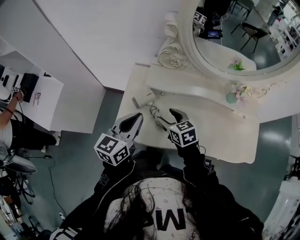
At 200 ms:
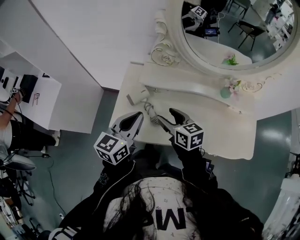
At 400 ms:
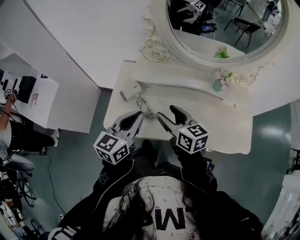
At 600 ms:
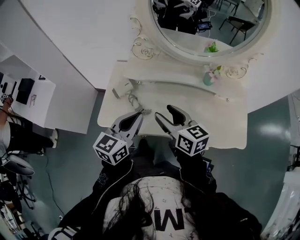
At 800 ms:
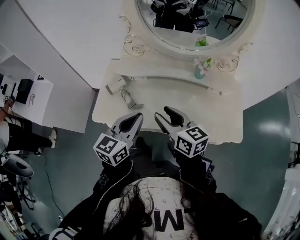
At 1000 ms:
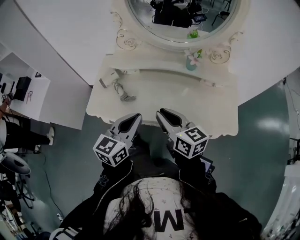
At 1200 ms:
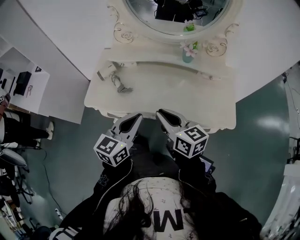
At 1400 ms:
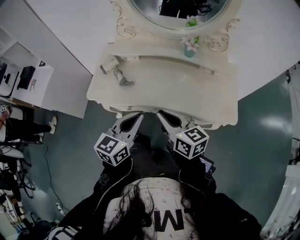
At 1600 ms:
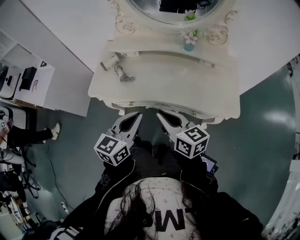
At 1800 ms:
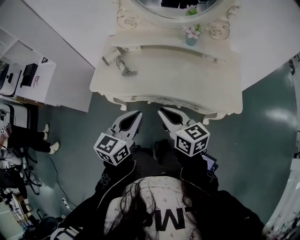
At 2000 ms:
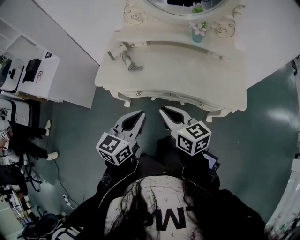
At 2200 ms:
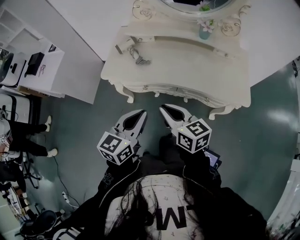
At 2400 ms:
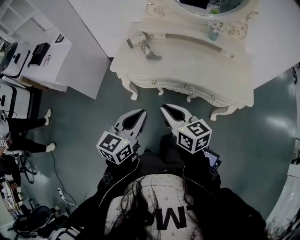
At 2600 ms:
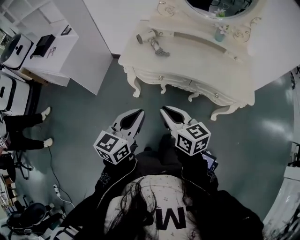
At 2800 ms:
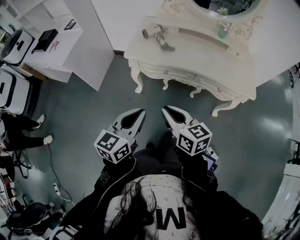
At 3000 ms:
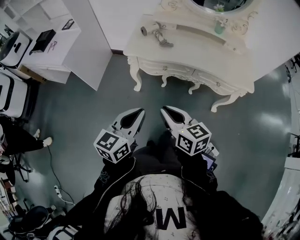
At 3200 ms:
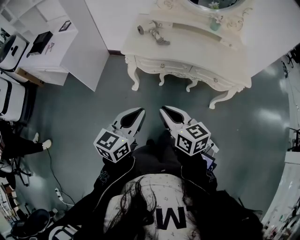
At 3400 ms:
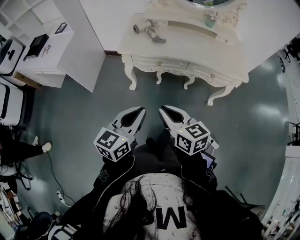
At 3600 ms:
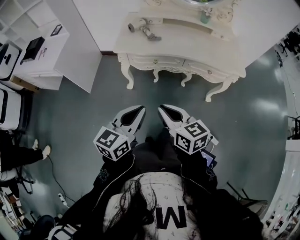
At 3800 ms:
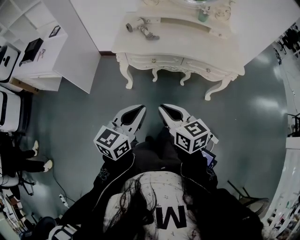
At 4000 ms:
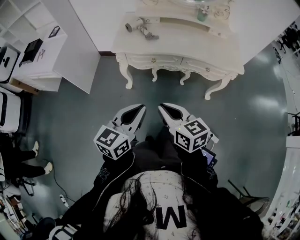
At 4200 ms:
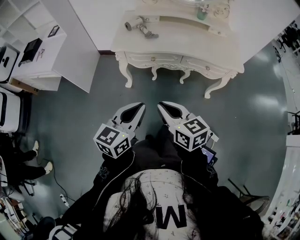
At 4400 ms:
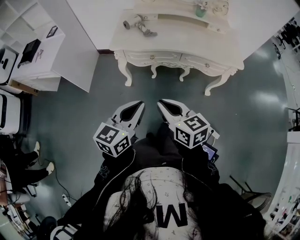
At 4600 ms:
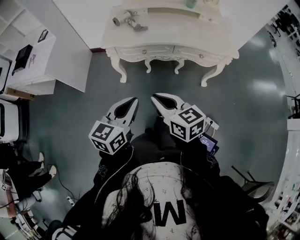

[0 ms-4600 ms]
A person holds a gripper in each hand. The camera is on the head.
0 ms to 1600 ms: The left gripper is displaced backward and to the right by roughly 35 cm. The right gripper moves backward, to the right and upward, about 35 cm, turns by some 30 degrees, and closes up.
1600 ms to 3000 ms: Both grippers move to the left and backward, roughly 30 cm.
3000 ms to 4600 ms: There are only small adjustments of the grippers.

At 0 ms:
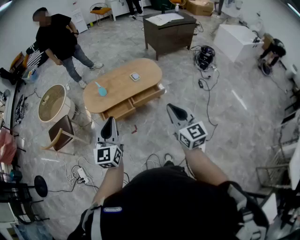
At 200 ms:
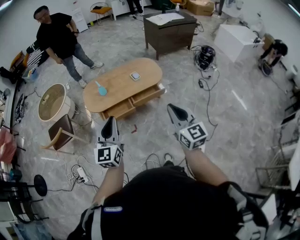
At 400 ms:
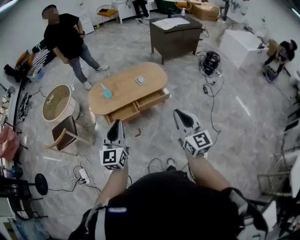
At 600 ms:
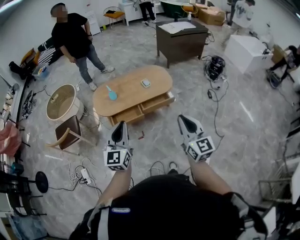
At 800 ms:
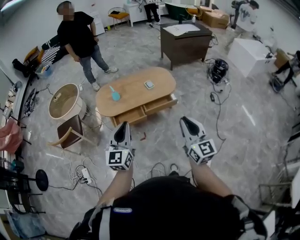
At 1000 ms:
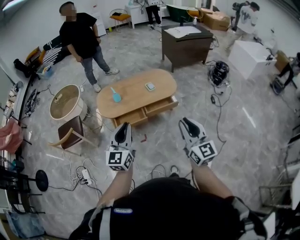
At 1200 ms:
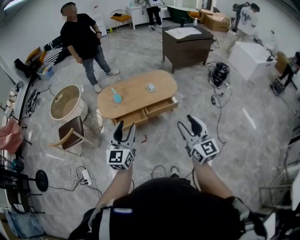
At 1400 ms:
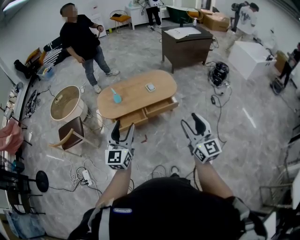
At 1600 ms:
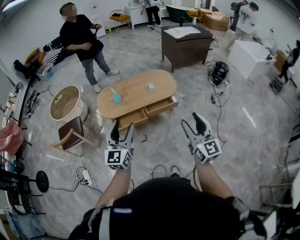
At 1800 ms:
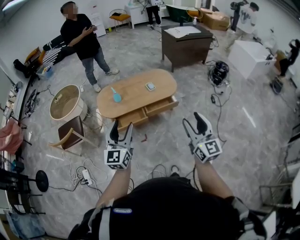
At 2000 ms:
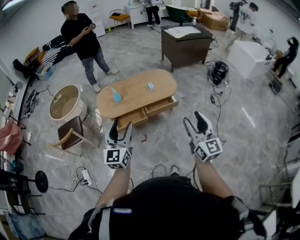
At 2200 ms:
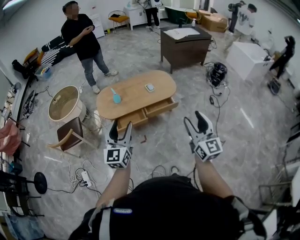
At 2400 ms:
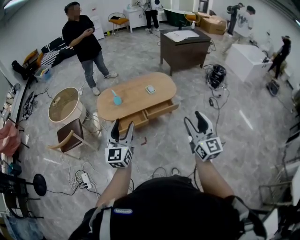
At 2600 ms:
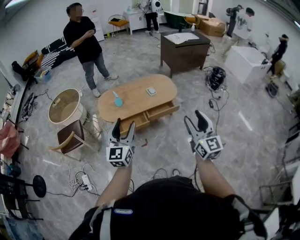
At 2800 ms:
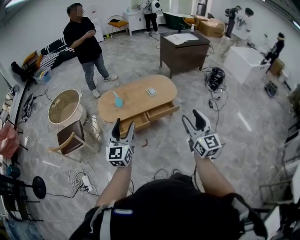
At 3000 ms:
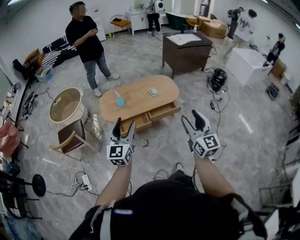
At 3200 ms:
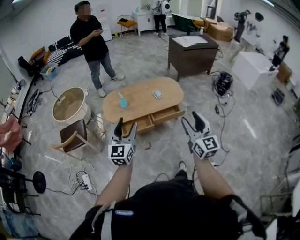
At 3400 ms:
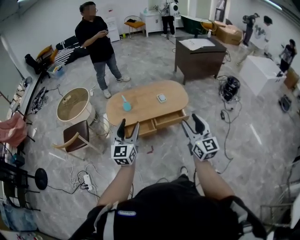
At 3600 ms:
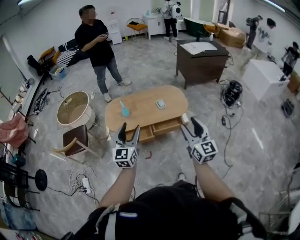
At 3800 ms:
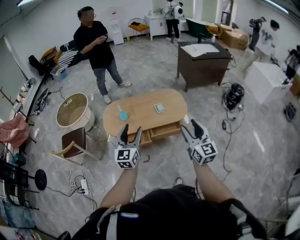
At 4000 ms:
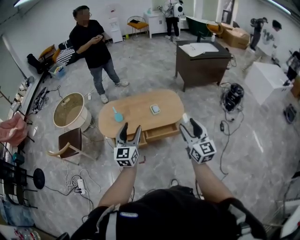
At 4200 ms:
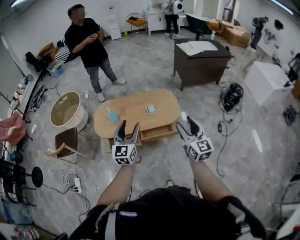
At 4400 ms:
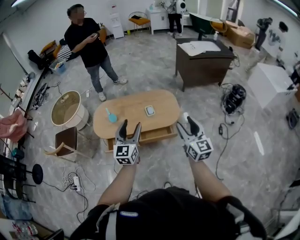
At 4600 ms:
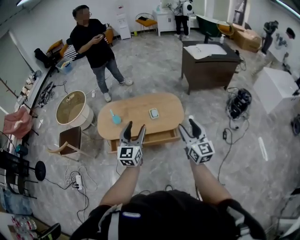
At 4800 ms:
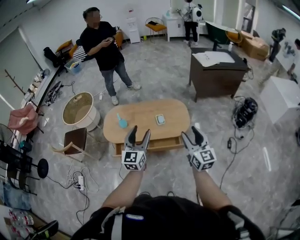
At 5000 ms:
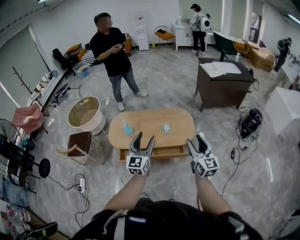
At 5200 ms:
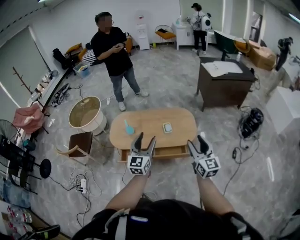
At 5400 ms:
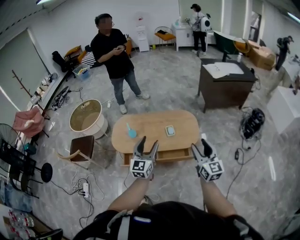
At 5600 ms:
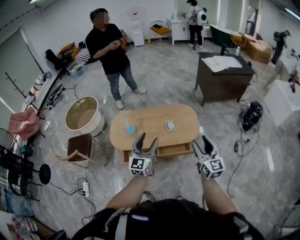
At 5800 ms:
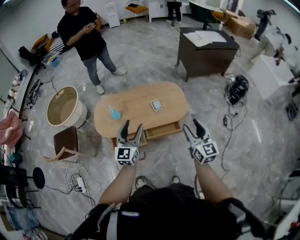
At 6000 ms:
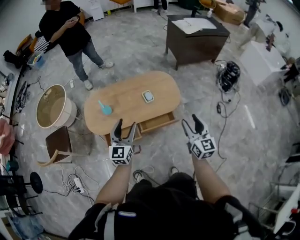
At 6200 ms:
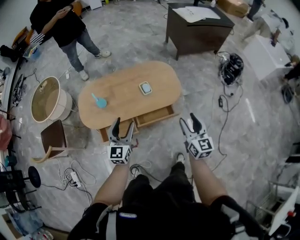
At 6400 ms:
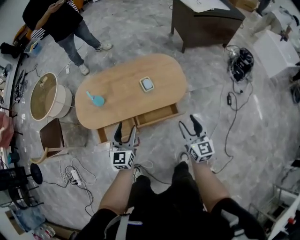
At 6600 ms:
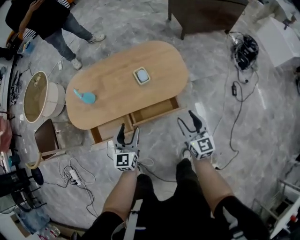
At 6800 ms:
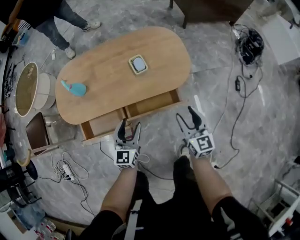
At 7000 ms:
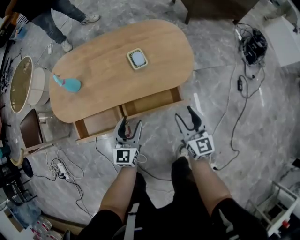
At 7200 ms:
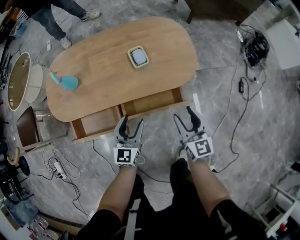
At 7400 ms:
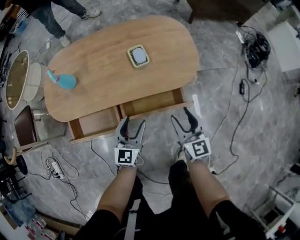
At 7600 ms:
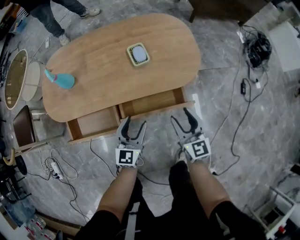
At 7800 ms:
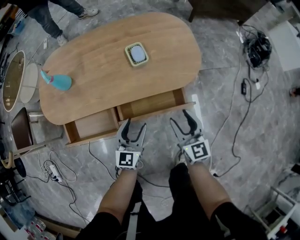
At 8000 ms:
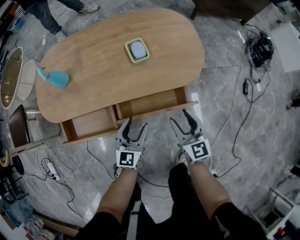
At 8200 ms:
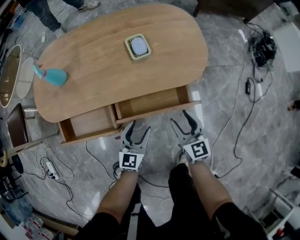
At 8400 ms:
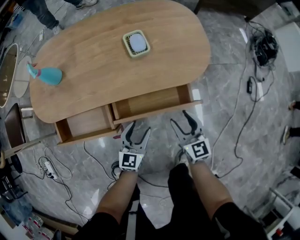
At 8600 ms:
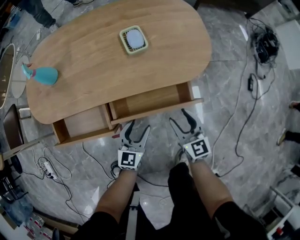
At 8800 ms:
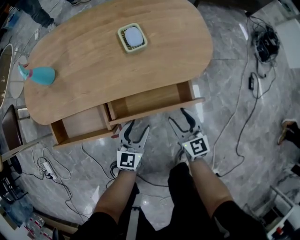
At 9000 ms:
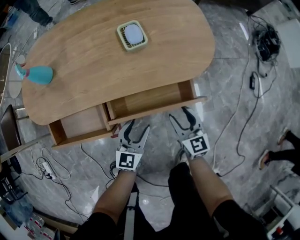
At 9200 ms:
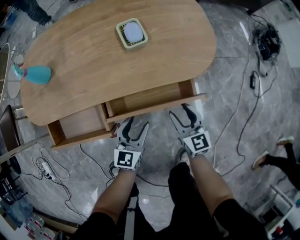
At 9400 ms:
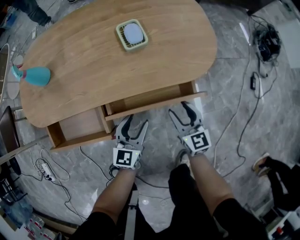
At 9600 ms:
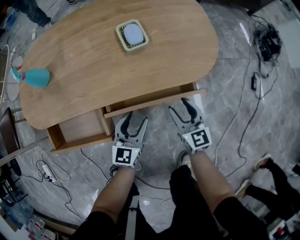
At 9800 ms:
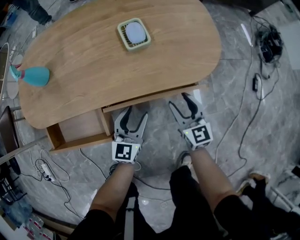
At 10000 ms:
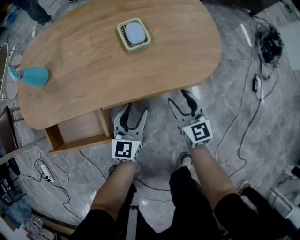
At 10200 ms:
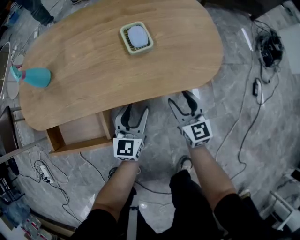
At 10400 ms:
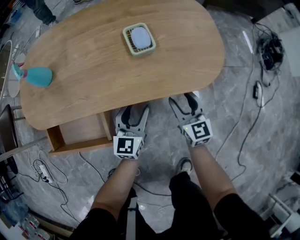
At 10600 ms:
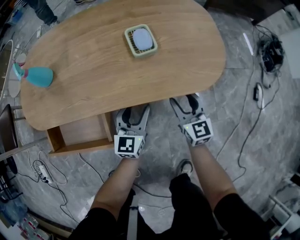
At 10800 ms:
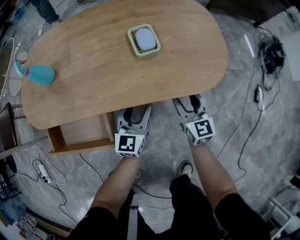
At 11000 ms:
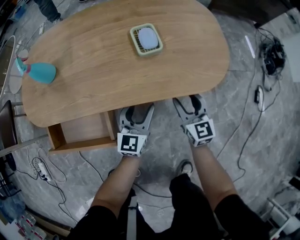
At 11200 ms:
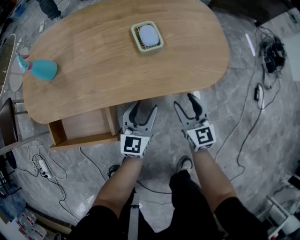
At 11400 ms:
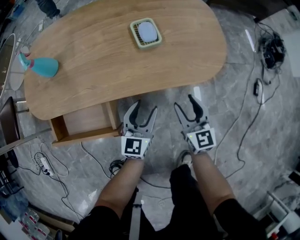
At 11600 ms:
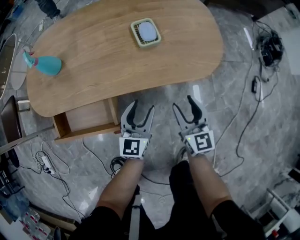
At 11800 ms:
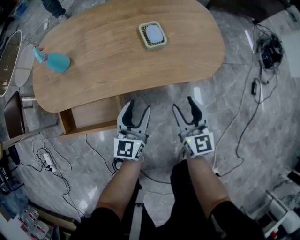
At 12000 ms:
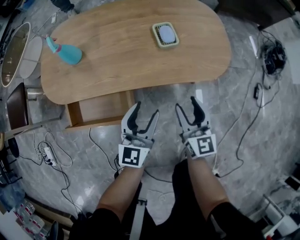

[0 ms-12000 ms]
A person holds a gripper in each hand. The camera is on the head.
0 ms to 1600 ms: The right gripper opens up. Meanwhile the left gripper opens up.
1600 ms to 3000 ms: Both grippers move to the left, approximately 5 cm.
3000 ms to 4400 ms: The right gripper shifts approximately 35 cm forward and to the right. The left gripper travels to the right and forward by roughly 35 cm.
4400 ms to 6000 ms: The right gripper moves downward, roughly 10 cm; the left gripper heads downward, to the left and forward, covering approximately 15 cm.
6000 ms to 7600 ms: Both grippers move downward, roughly 40 cm.
7600 ms to 9000 ms: Both grippers travel together downward, about 15 cm.
9000 ms to 10400 ms: The two grippers go about 10 cm forward.
10400 ms to 12000 ms: The right gripper is displaced upward, backward and to the left by approximately 15 cm, while the left gripper travels upward and backward by about 15 cm.

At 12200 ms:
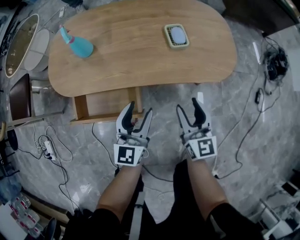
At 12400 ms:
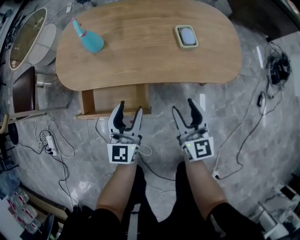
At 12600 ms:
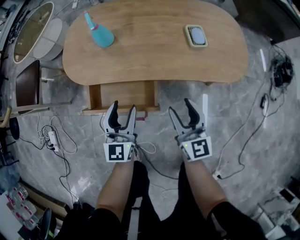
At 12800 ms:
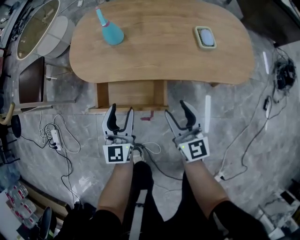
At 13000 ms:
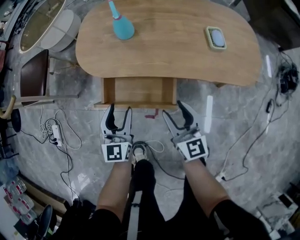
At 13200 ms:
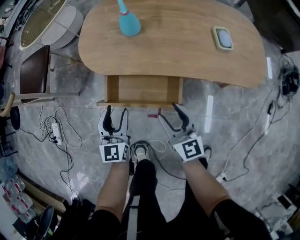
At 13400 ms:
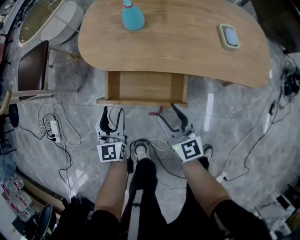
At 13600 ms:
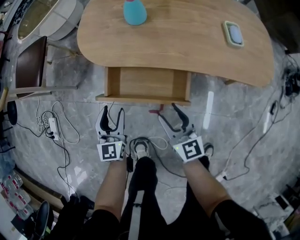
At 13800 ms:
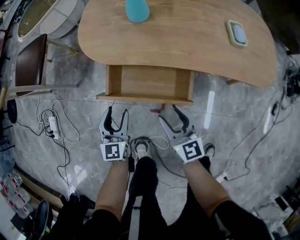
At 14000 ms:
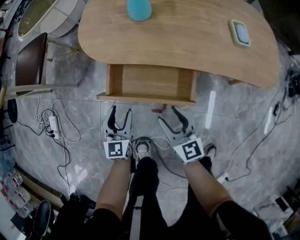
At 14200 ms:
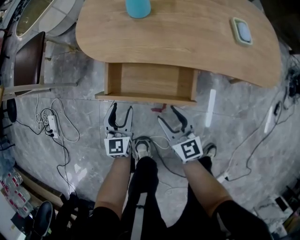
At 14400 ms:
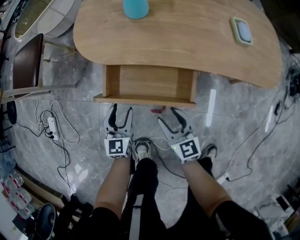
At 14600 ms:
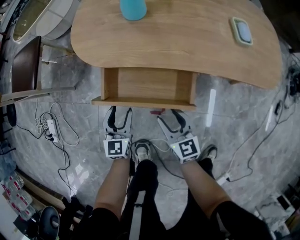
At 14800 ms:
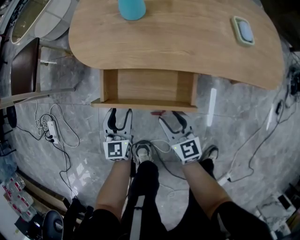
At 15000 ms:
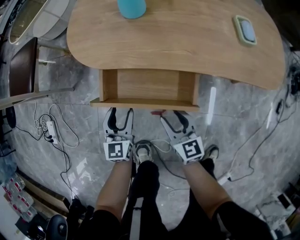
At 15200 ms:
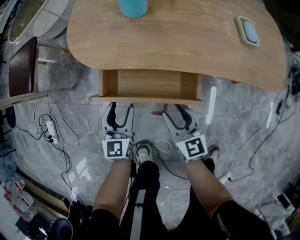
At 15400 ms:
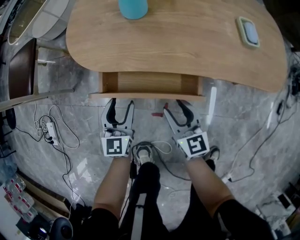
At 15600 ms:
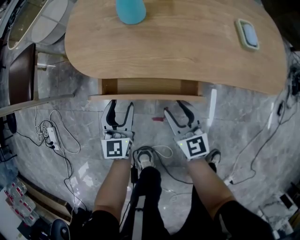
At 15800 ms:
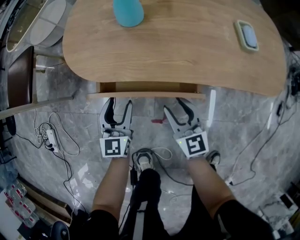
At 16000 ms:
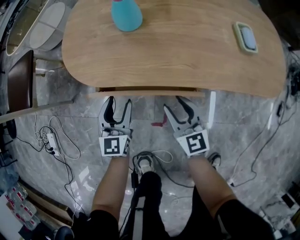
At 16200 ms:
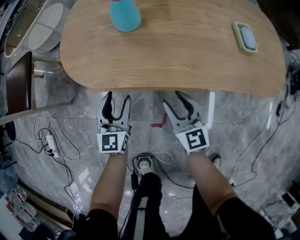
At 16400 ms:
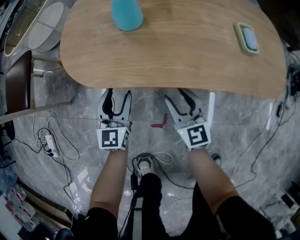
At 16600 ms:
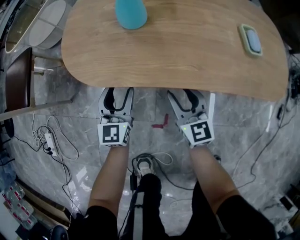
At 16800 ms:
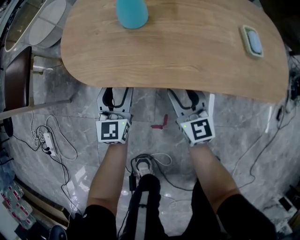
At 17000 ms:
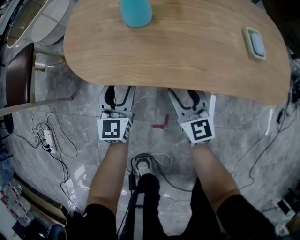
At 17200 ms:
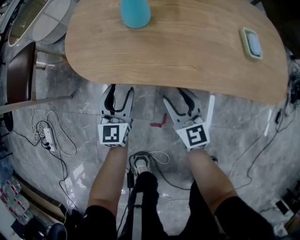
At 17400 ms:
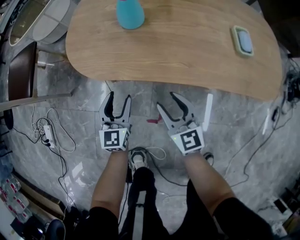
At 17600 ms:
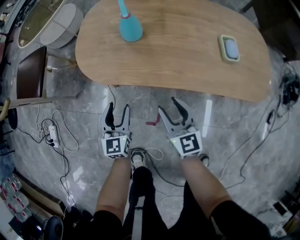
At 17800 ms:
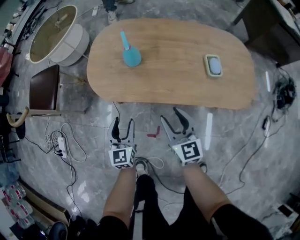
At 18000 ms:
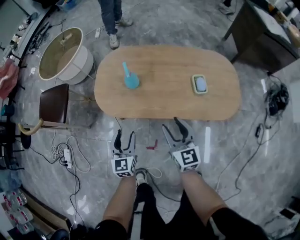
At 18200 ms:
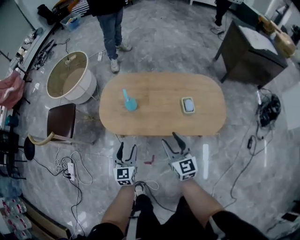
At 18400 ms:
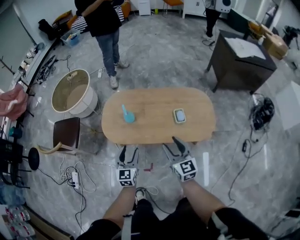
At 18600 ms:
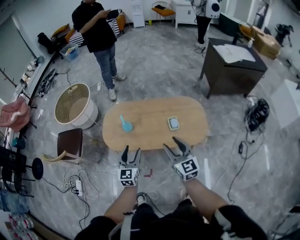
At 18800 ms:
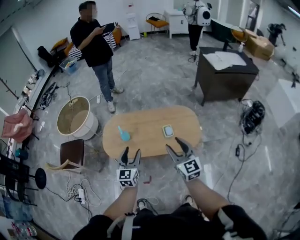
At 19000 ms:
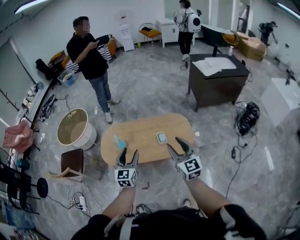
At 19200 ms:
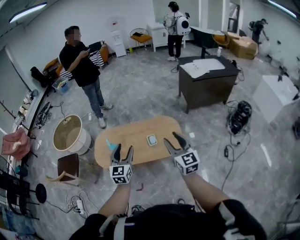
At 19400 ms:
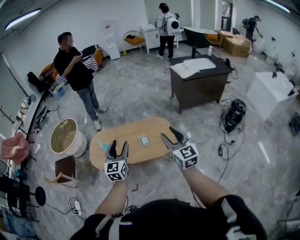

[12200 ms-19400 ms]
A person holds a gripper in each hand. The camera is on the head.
12200 ms to 13600 ms: Both grippers travel together to the left, about 30 cm. The right gripper rotates approximately 20 degrees, while the left gripper rotates roughly 20 degrees.
13600 ms to 15000 ms: Both grippers travel together downward, roughly 10 cm.
15000 ms to 16600 ms: Both grippers move forward, about 15 cm.
16600 ms to 18000 ms: The right gripper goes about 25 cm upward, while the left gripper is displaced upward and backward by some 20 cm.
18000 ms to 19400 ms: Both grippers move upward and to the right, some 60 cm. The left gripper turns by approximately 20 degrees.
